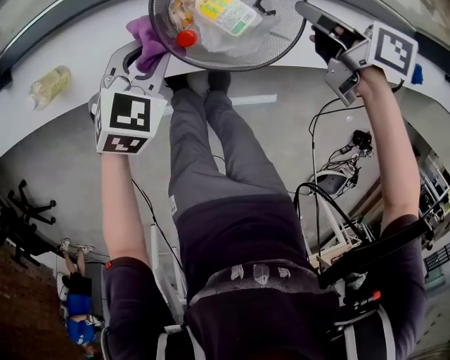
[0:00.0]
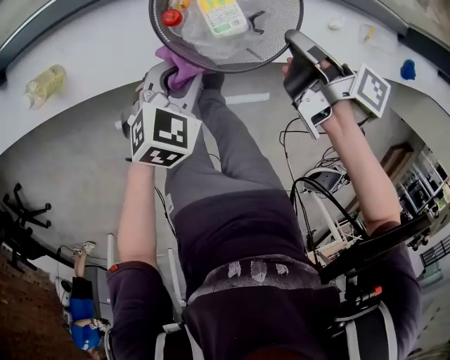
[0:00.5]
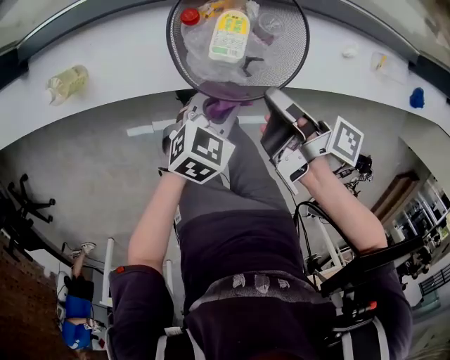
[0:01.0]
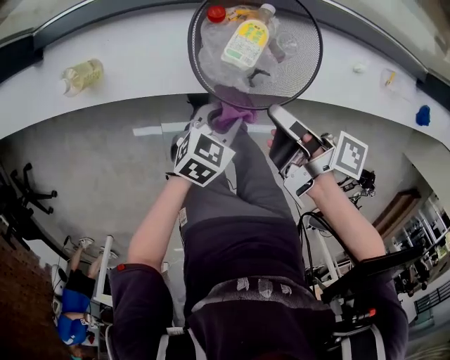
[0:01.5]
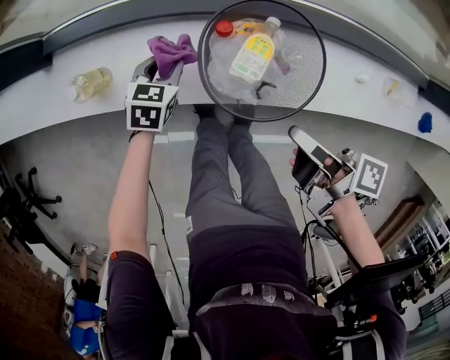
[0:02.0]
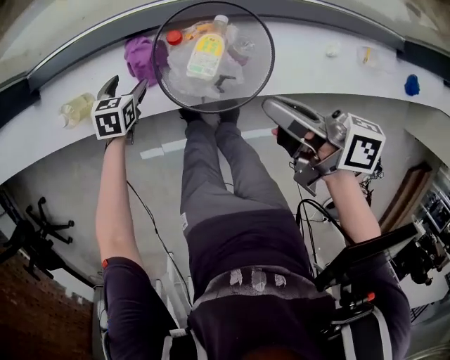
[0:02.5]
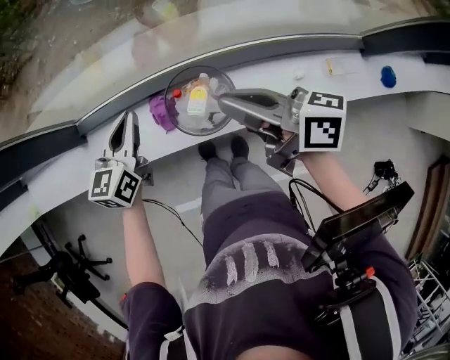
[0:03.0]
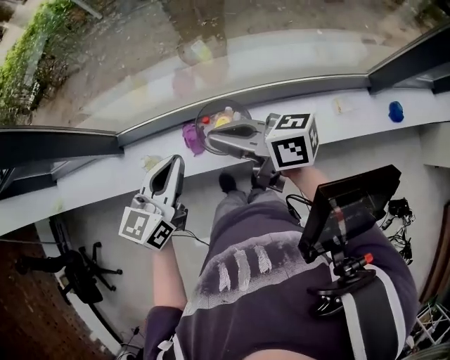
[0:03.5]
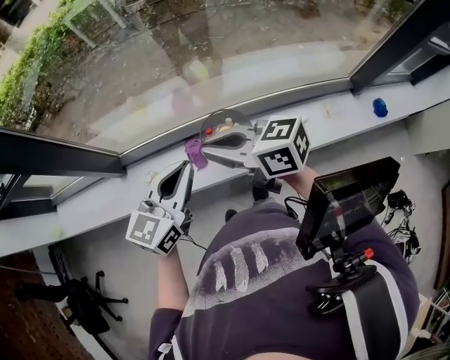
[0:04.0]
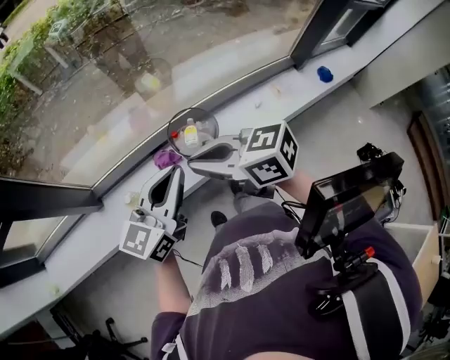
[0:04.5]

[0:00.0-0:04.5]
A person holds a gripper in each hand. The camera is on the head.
0:00.0 to 0:02.0: The right gripper heads backward and to the left, covering roughly 20 cm, and turns by about 40 degrees; the left gripper is displaced to the left and downward by roughly 10 cm, and turns by approximately 20 degrees.
0:02.0 to 0:04.5: The right gripper is displaced upward and to the left by about 40 cm, and rolls counterclockwise, seen from behind, by approximately 70 degrees, while the left gripper is displaced upward by about 50 cm, angles its fingers upward, by some 50 degrees, and opens, then closes once more.

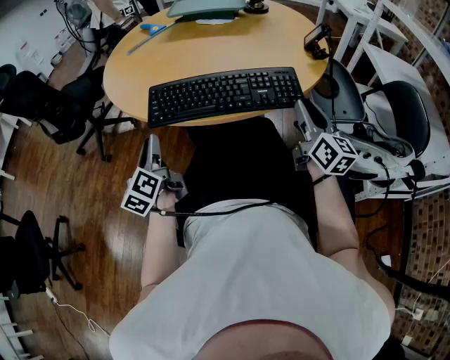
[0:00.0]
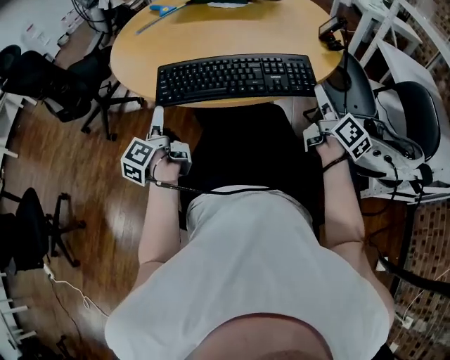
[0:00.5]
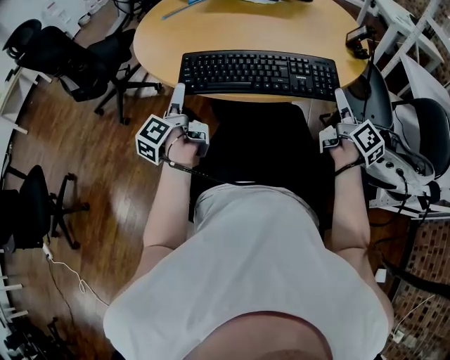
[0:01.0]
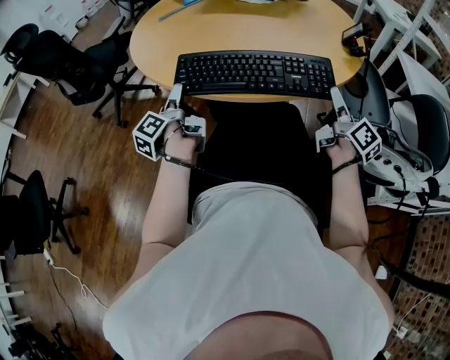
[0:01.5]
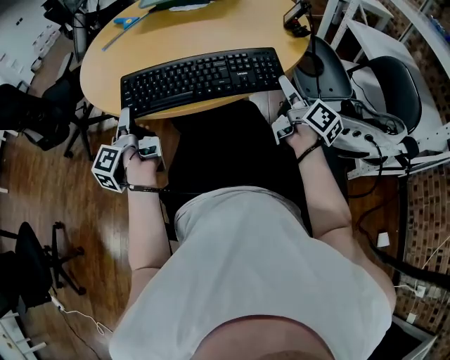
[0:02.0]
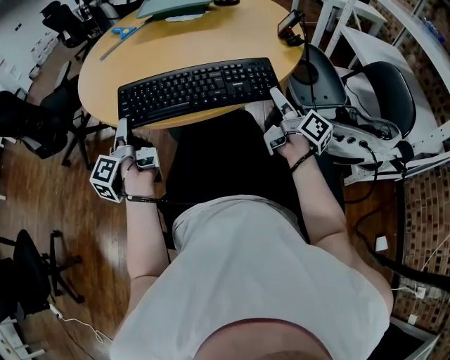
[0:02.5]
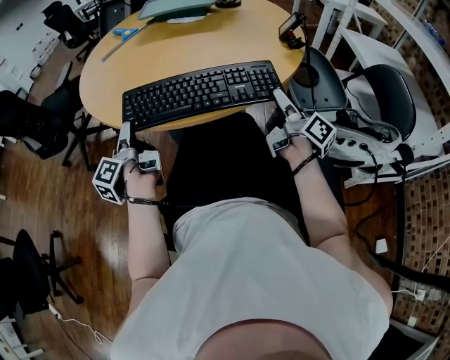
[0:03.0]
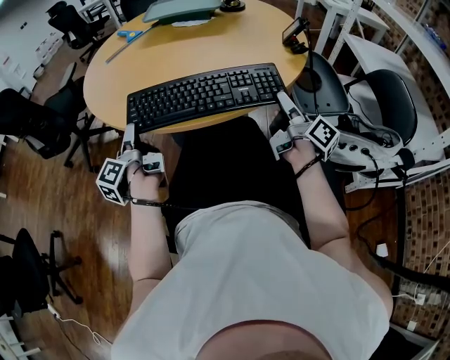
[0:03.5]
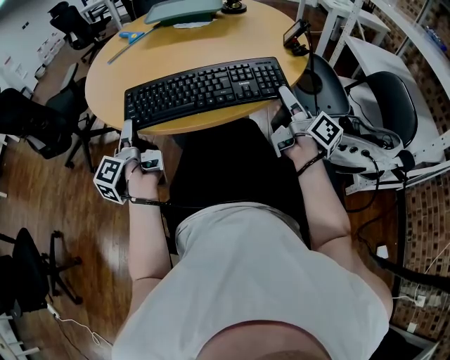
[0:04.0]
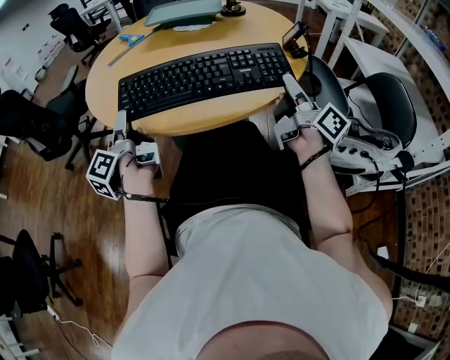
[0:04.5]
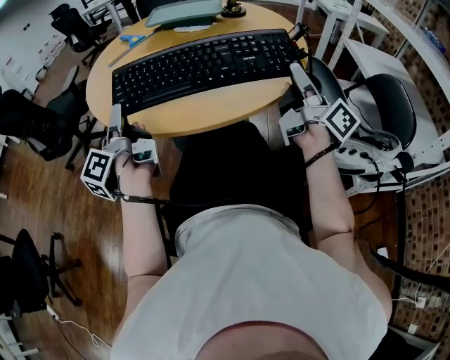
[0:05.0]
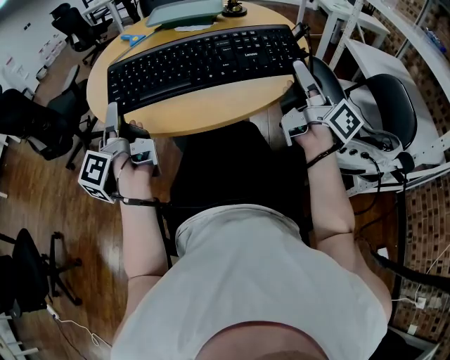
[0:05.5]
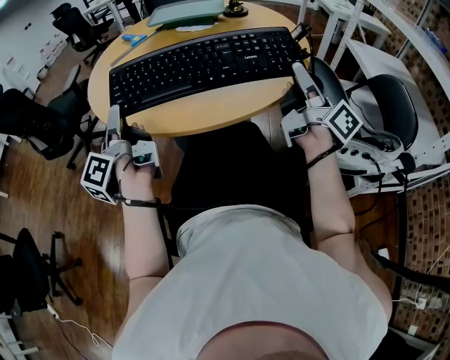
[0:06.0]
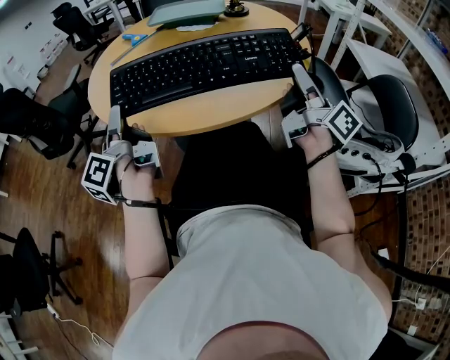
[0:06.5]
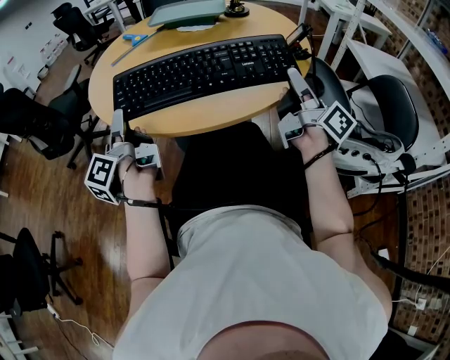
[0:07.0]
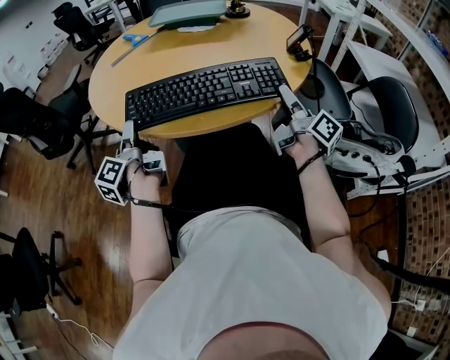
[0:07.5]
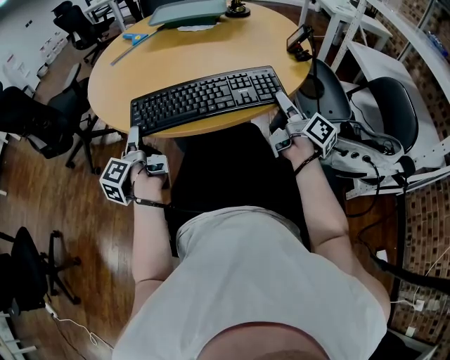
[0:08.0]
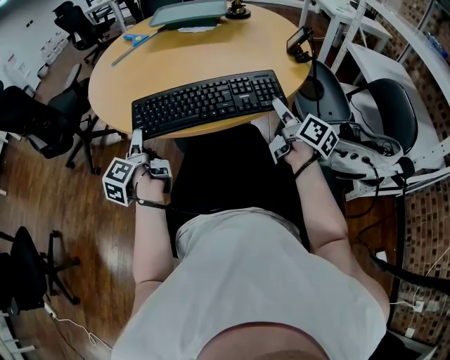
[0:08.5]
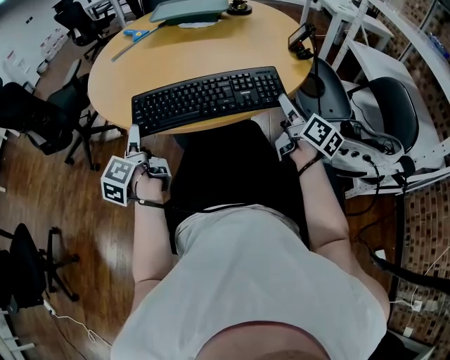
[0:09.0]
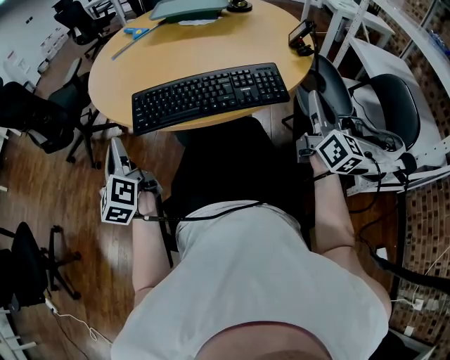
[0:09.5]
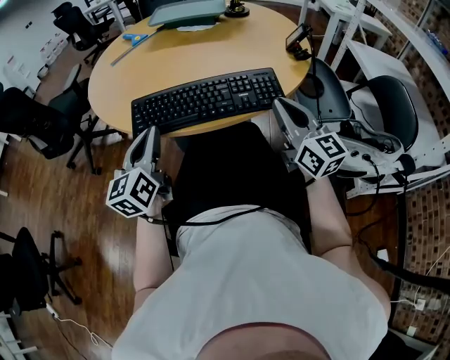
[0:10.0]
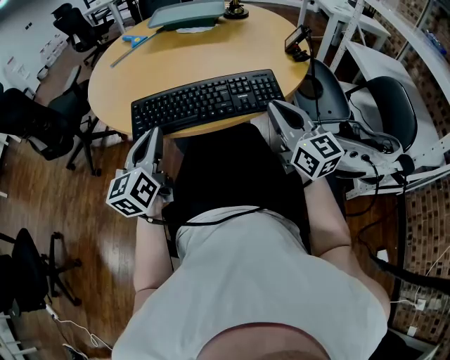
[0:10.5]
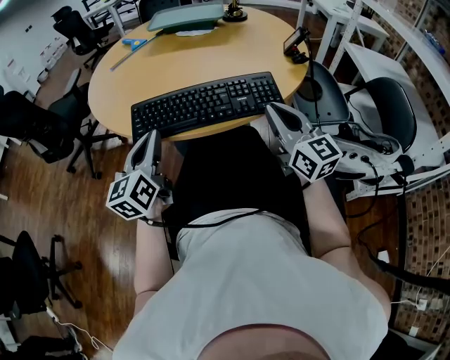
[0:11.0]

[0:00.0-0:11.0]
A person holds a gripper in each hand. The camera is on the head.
0:00.0 to 0:02.0: The left gripper heads forward, covering approximately 5 cm, and changes its angle by roughly 40 degrees. Meanwhile the right gripper shifts by some 5 cm, turns by approximately 40 degrees, and opens its fingers.
0:02.0 to 0:03.5: The right gripper closes.
0:03.5 to 0:05.5: The grippers both shift upward by some 15 cm.
0:05.5 to 0:07.5: The grippers both shift downward by some 10 cm.
0:07.5 to 0:09.0: The right gripper swivels some 20 degrees, and opens its fingers.
0:09.0 to 0:11.0: The left gripper moves upward and to the right, about 10 cm, rolls clockwise, seen from behind, by approximately 40 degrees, and closes its fingers. Meanwhile the right gripper is displaced to the left, upward and backward by approximately 15 cm, rotates around the line of its fingers by about 40 degrees, counterclockwise from behind, and closes up.

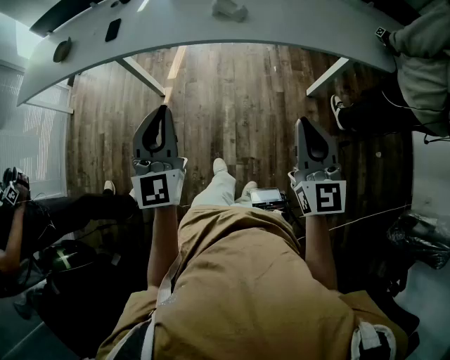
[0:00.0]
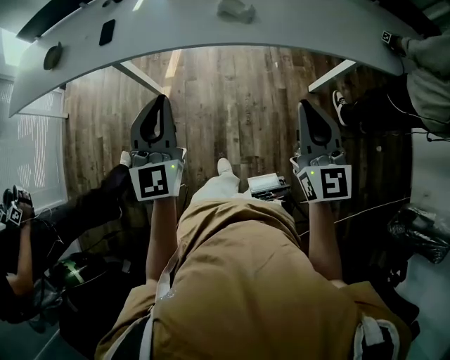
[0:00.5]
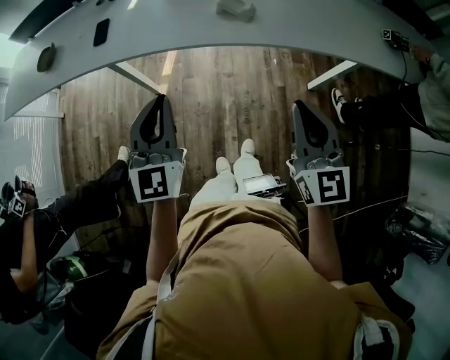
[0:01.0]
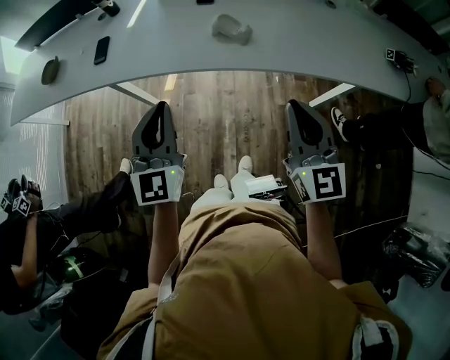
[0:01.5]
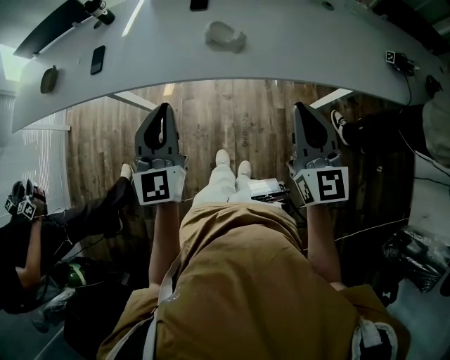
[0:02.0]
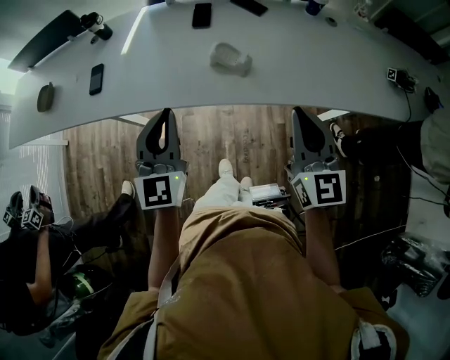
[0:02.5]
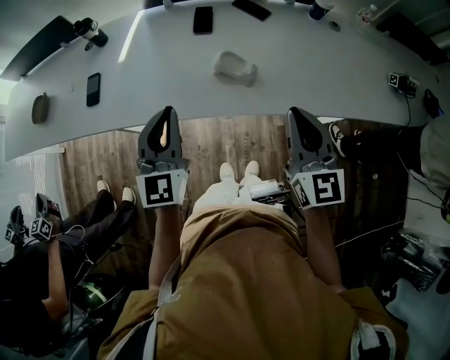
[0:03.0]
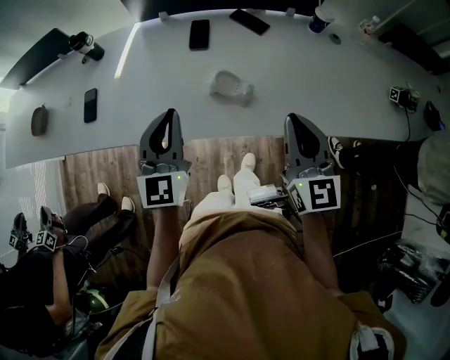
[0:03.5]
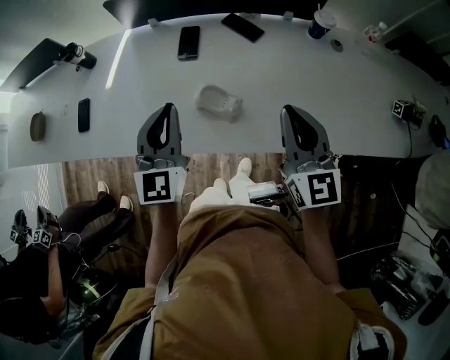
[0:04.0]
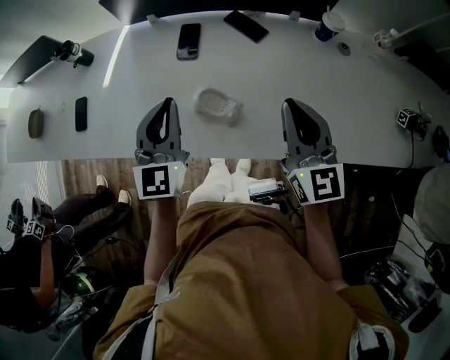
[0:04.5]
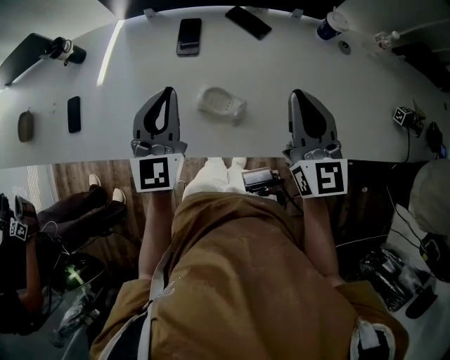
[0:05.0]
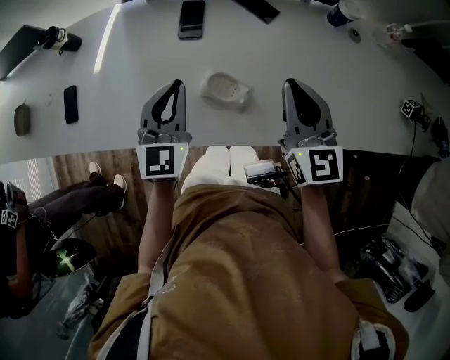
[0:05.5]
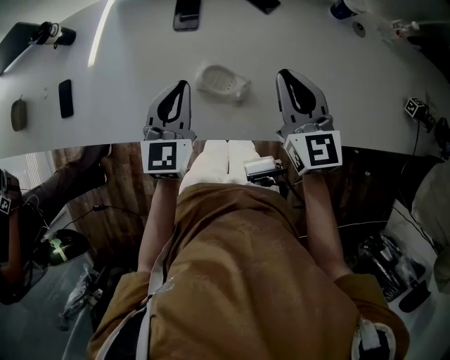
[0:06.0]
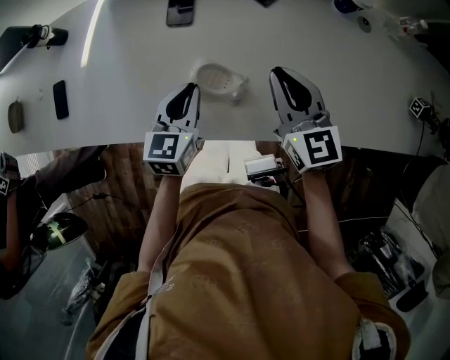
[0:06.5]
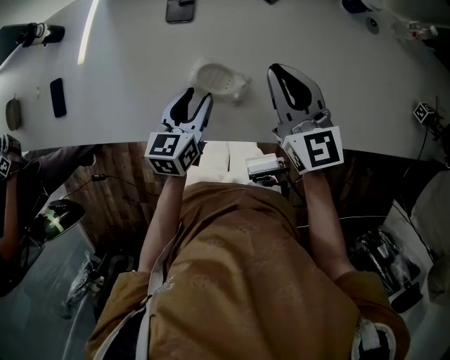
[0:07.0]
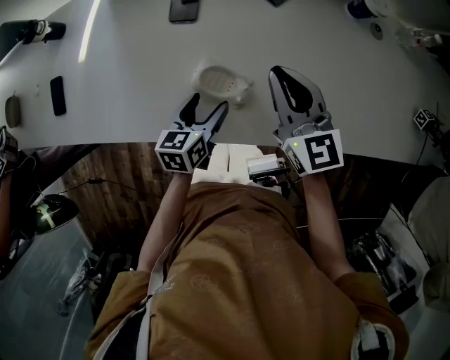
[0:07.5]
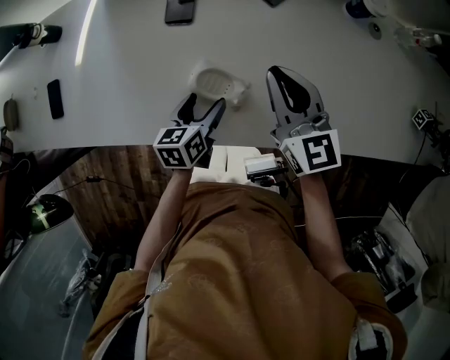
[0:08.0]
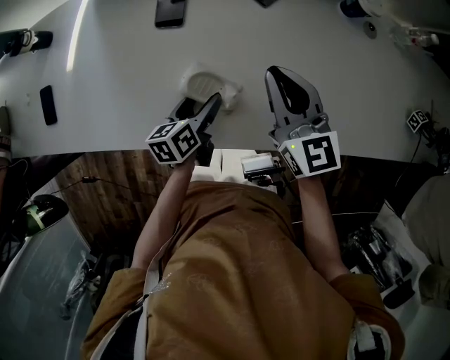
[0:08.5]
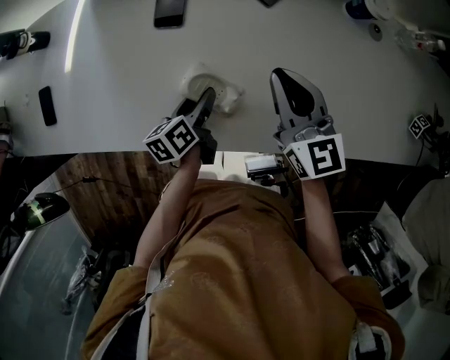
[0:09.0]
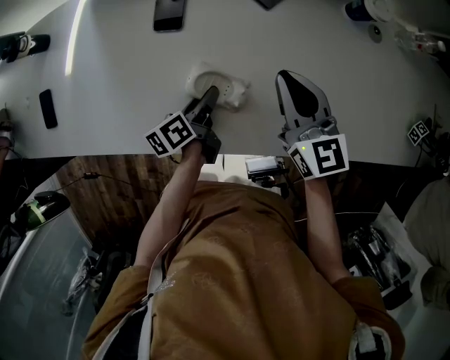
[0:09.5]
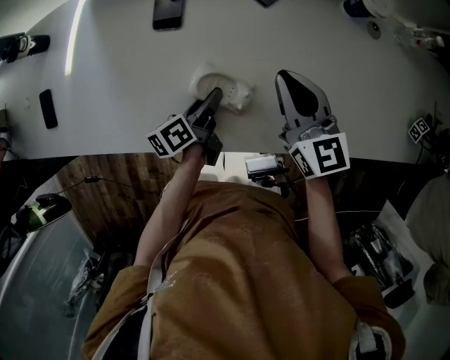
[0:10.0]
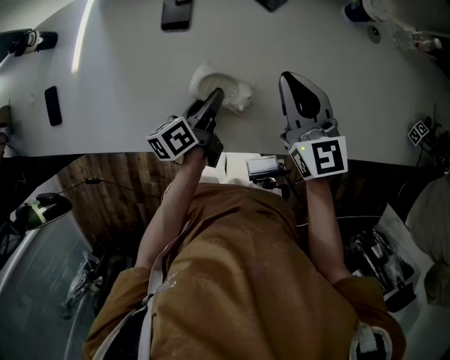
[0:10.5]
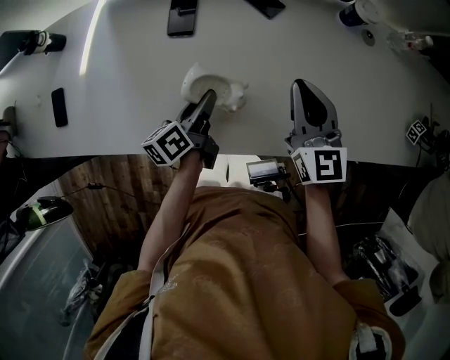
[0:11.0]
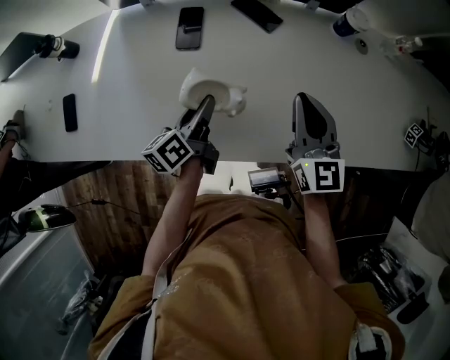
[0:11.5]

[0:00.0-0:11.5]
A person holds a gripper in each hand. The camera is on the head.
0:00.0 to 0:02.0: Both grippers move forward, roughly 20 cm.
0:02.0 to 0:04.0: The two grippers go some 25 cm forward.
0:04.0 to 0:06.0: The left gripper shifts about 15 cm downward and forward; the right gripper shifts some 15 cm forward and downward.
0:06.0 to 0:07.5: The left gripper travels downward by about 15 cm, swivels approximately 40 degrees, and opens its fingers. Meanwhile the right gripper changes place by approximately 5 cm.
0:07.5 to 0:09.5: The left gripper is displaced forward by approximately 5 cm, swivels approximately 40 degrees, and closes its fingers. The right gripper ends up approximately 5 cm from where it was.
0:09.5 to 0:11.5: The right gripper heads upward, covering some 5 cm. Meanwhile the left gripper shifts roughly 10 cm upward.
